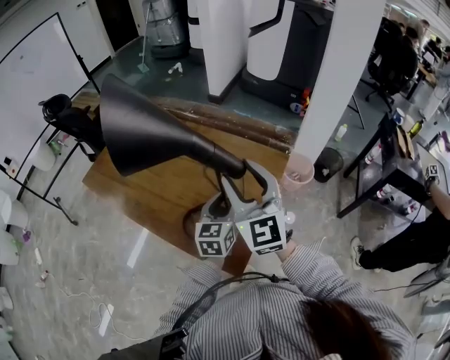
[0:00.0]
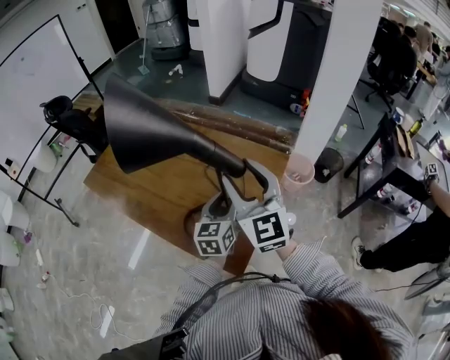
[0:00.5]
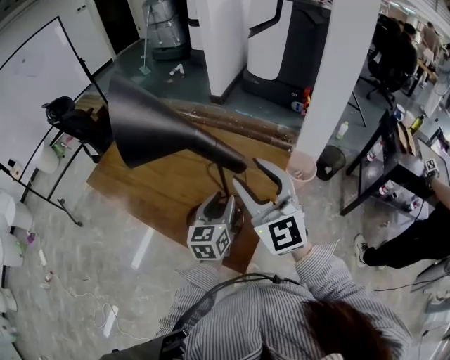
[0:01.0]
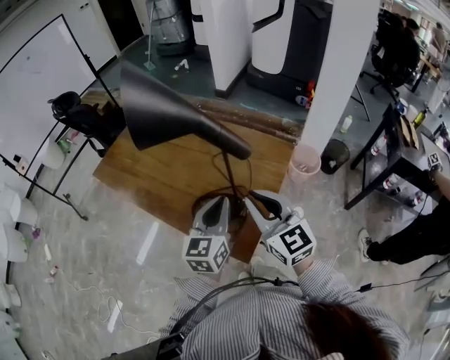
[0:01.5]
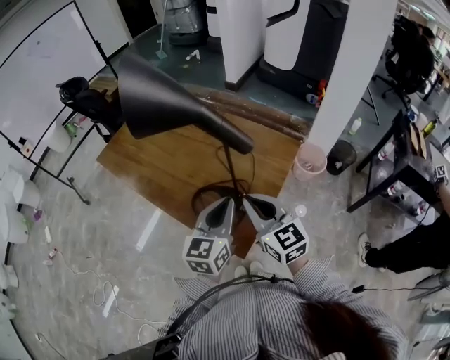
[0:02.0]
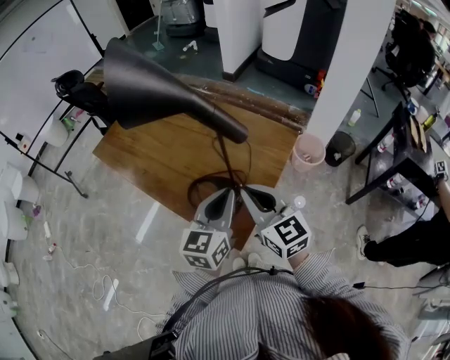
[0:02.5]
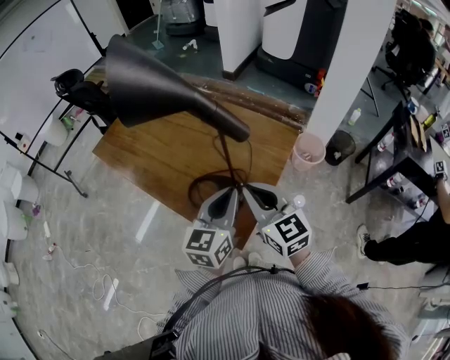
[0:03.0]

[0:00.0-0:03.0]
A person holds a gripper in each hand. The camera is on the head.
0.0 to 1.5 s: The right gripper is displaced backward and downward by roughly 10 cm, turns by some 20 degrees, and closes its fingers. The left gripper heads backward and upward, covering some 10 cm, and closes its fingers.
1.5 to 3.0 s: The grippers move only a little.

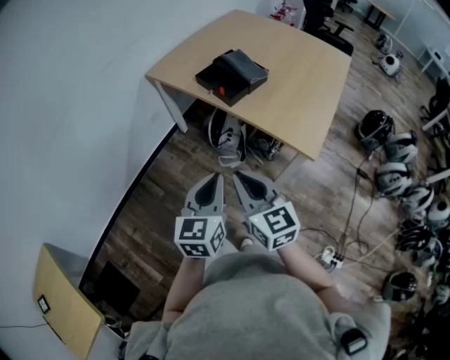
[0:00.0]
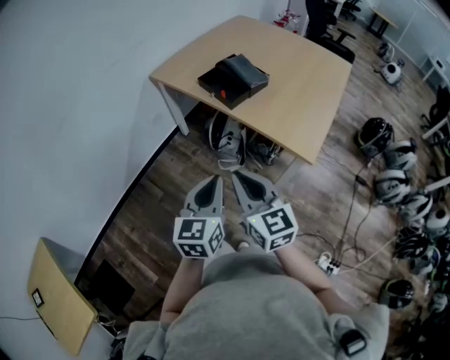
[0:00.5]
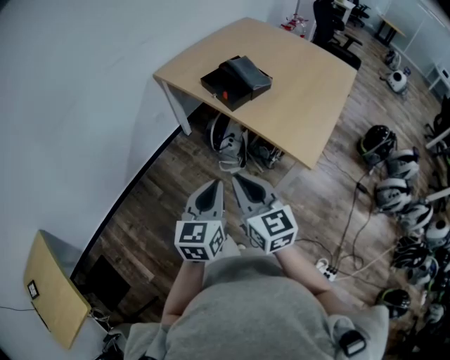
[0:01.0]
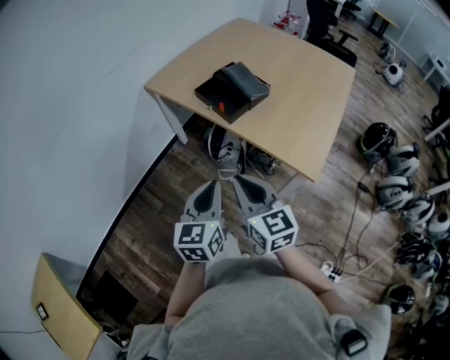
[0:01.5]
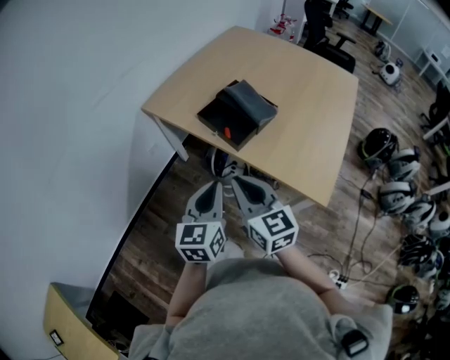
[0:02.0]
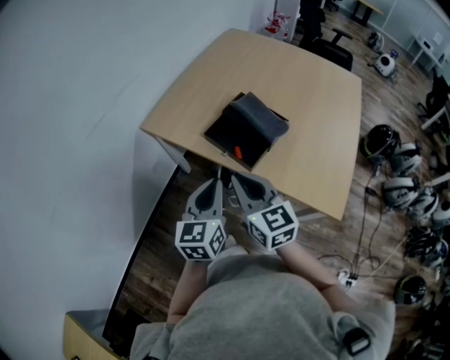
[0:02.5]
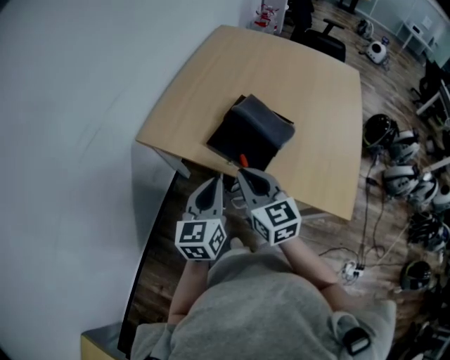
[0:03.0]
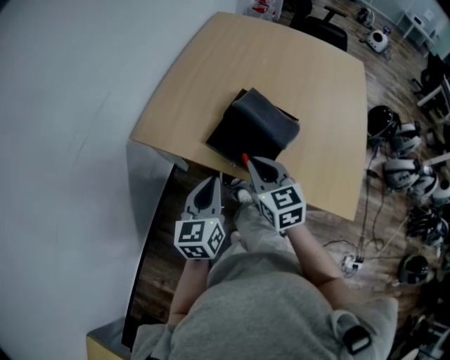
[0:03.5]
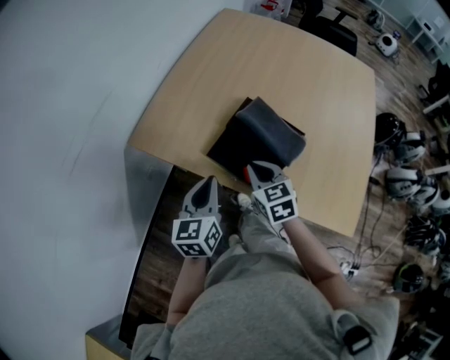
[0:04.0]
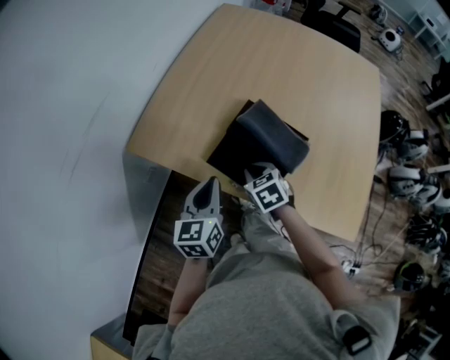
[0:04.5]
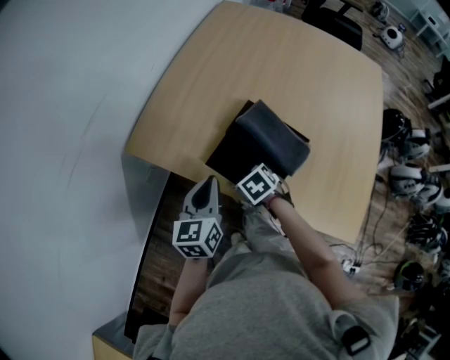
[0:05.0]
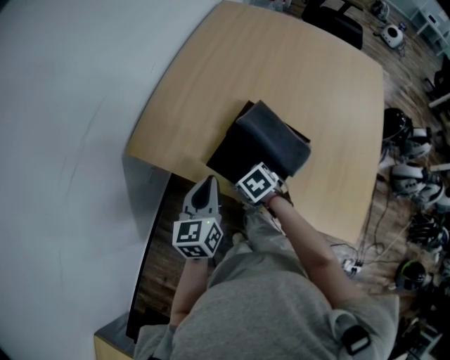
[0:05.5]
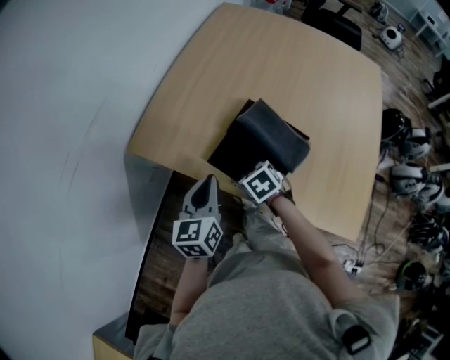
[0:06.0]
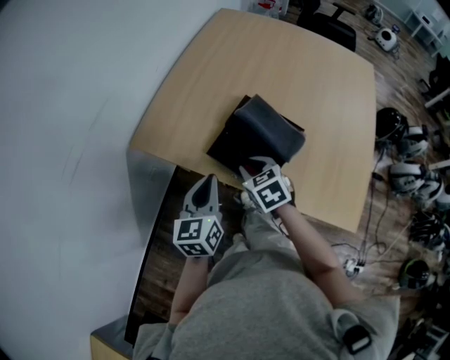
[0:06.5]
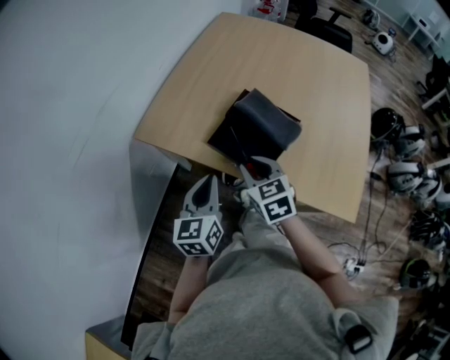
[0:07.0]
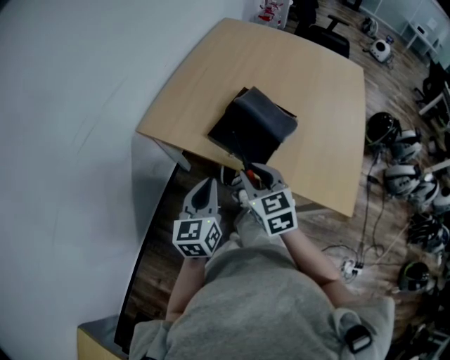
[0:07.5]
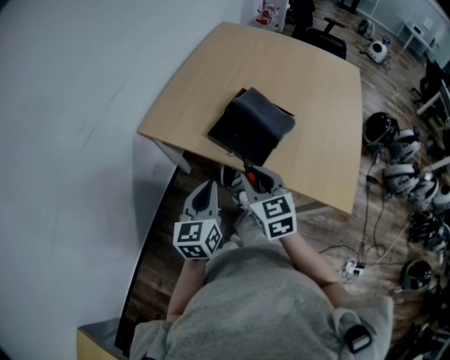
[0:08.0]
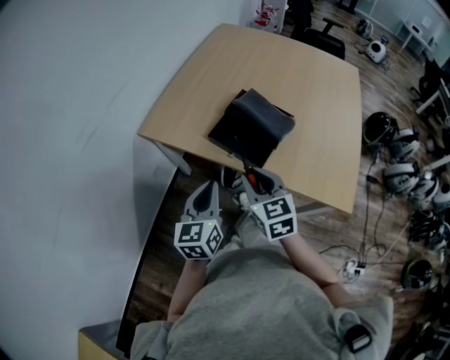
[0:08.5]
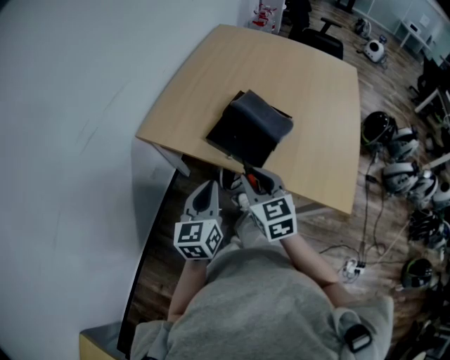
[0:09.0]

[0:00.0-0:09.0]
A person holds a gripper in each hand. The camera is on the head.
0.0 to 2.0 s: The two grippers go some 20 cm forward.
2.0 to 4.5 s: The right gripper is displaced forward and downward by roughly 35 cm, and tips its fingers downward by approximately 40 degrees. Meanwhile the left gripper travels forward by about 30 cm.
4.5 to 7.0 s: The right gripper heads upward, covering about 10 cm, while the left gripper moves roughly 10 cm.
7.0 to 9.0 s: Both grippers move backward, approximately 5 cm.

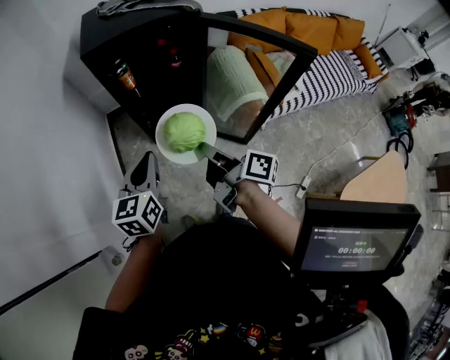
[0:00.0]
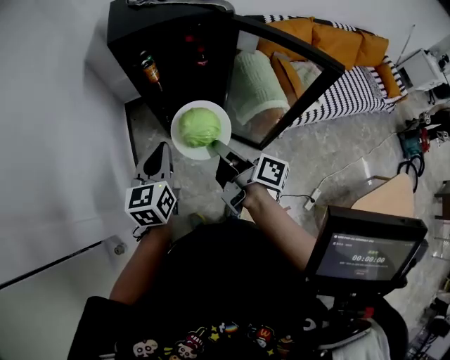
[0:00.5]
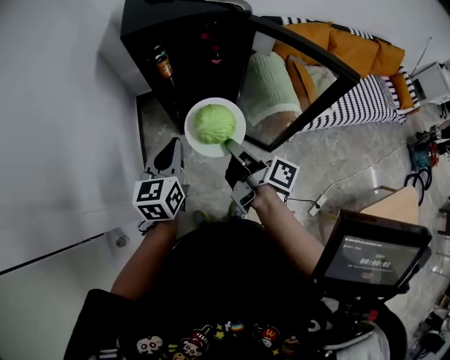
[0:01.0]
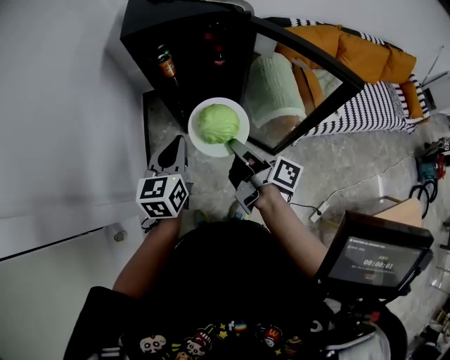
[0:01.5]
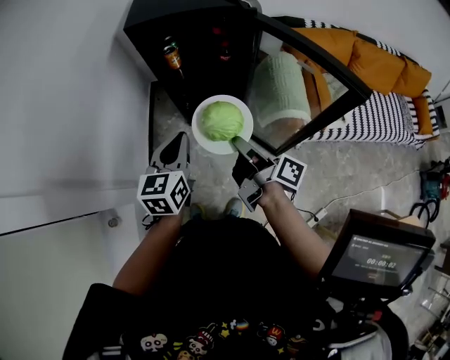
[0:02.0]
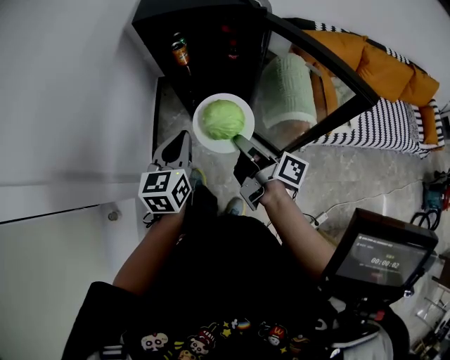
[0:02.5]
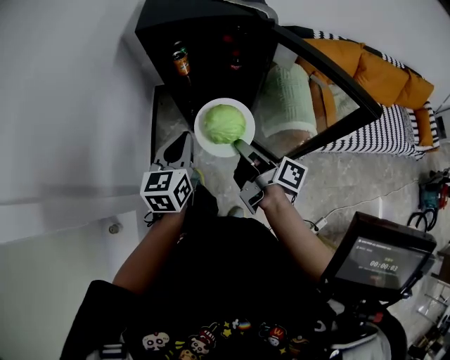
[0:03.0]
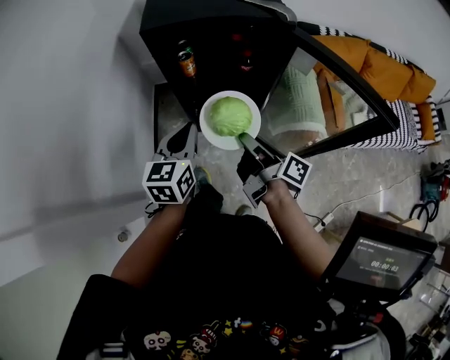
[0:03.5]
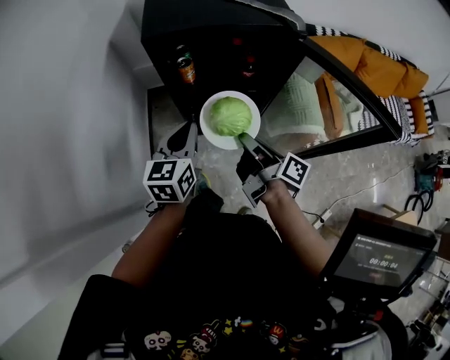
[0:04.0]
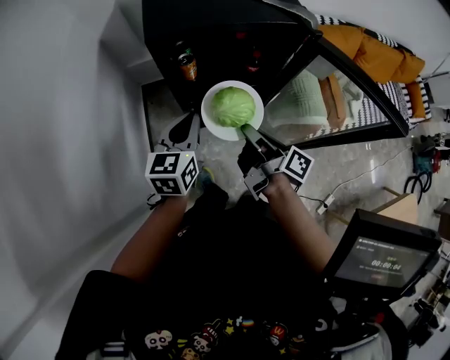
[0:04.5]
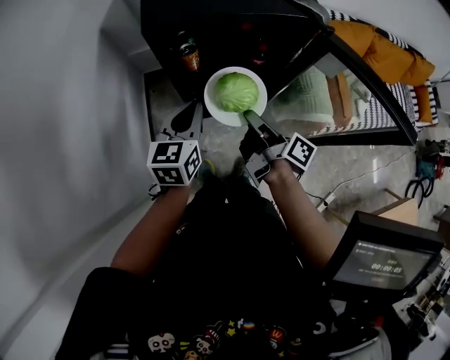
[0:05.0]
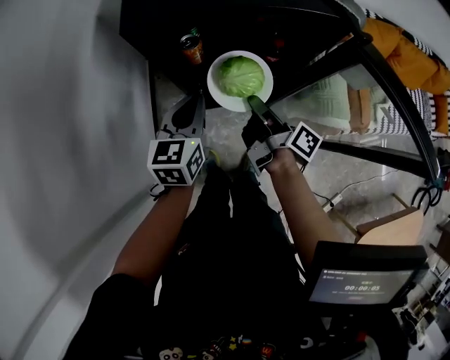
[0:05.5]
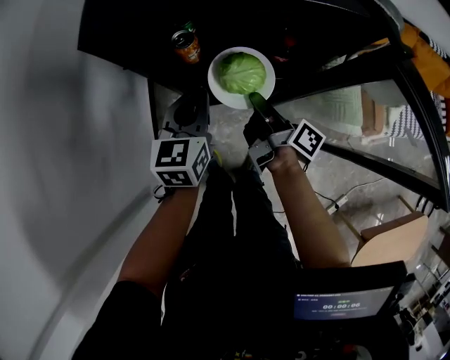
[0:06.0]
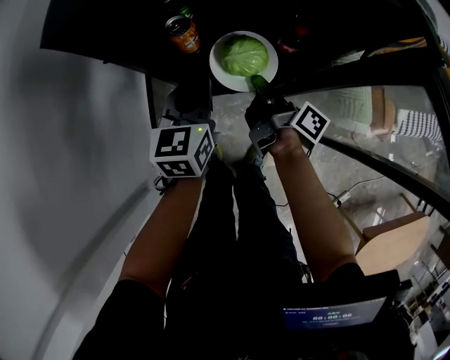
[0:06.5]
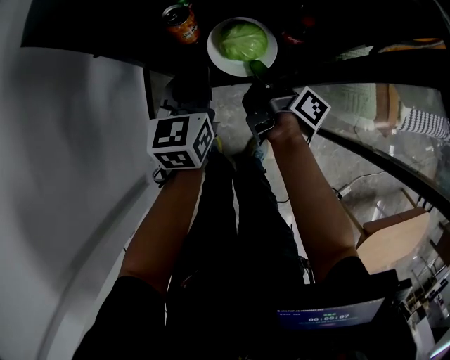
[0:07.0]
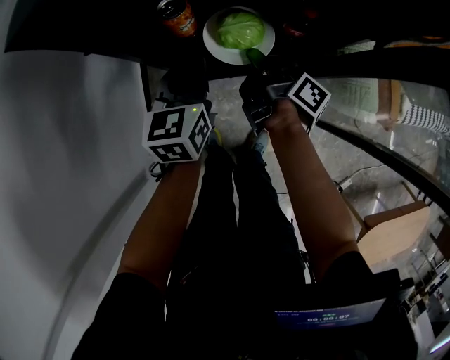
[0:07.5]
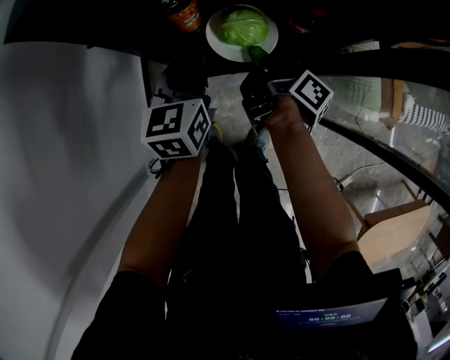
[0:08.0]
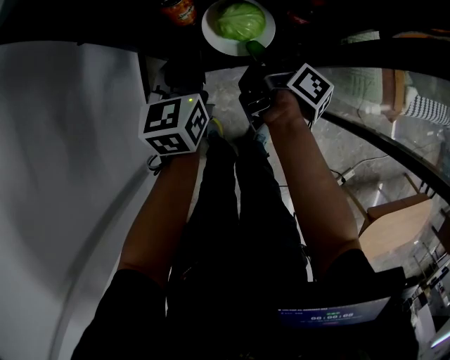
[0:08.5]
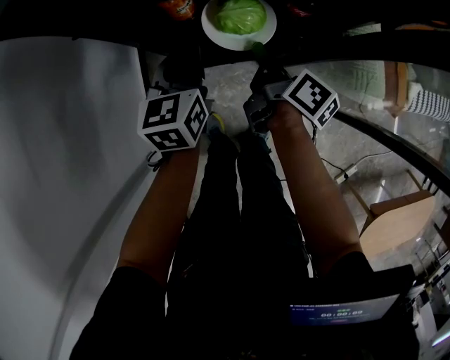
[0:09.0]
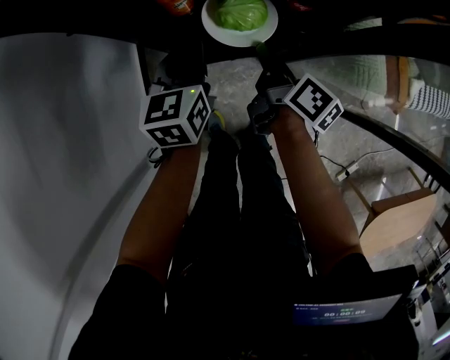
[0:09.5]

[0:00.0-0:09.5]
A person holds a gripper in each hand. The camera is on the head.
0.0 to 2.0 s: The left gripper ends up some 5 cm from where it was.
2.0 to 4.0 s: The left gripper shifts by roughly 15 cm.
4.0 to 5.5 s: The left gripper moves about 15 cm.
5.5 to 7.5 s: The left gripper is displaced downward by roughly 10 cm.

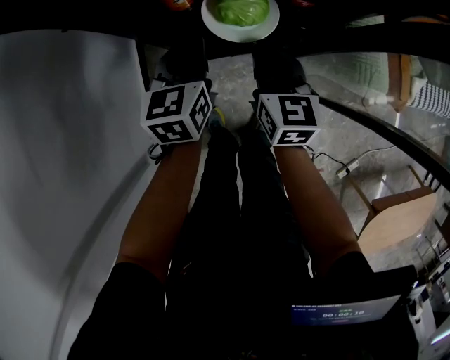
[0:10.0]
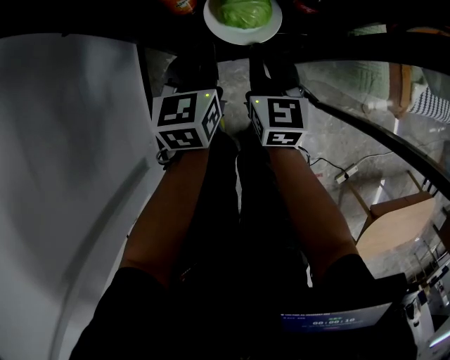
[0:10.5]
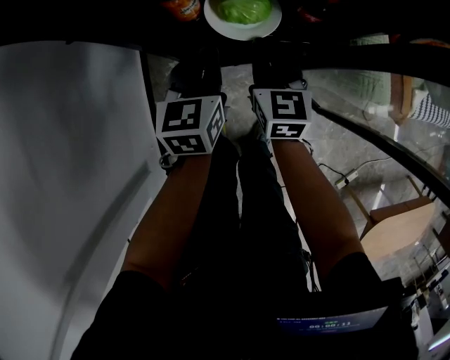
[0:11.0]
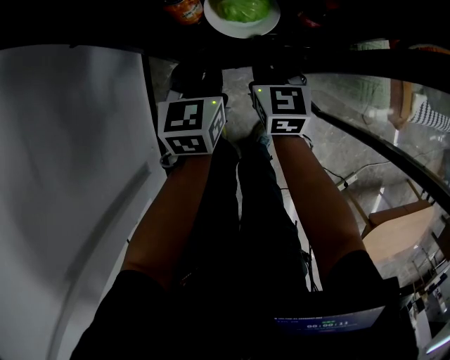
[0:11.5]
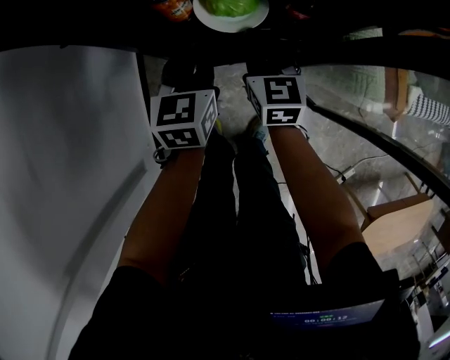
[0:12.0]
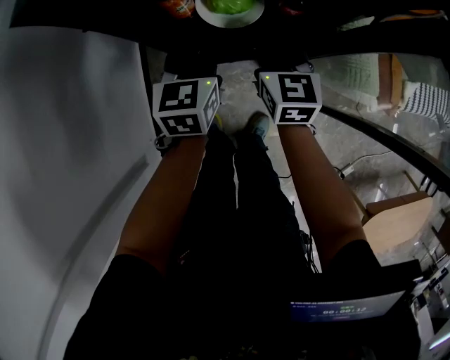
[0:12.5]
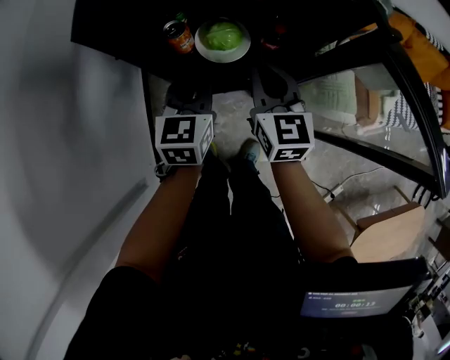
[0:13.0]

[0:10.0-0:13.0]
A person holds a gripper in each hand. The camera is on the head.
11.5 to 13.0 s: The left gripper goes about 10 cm upward.

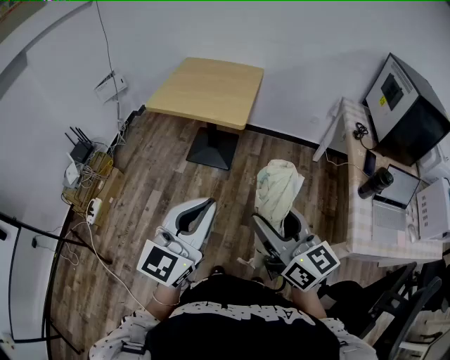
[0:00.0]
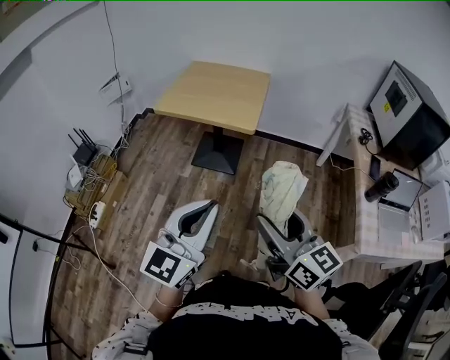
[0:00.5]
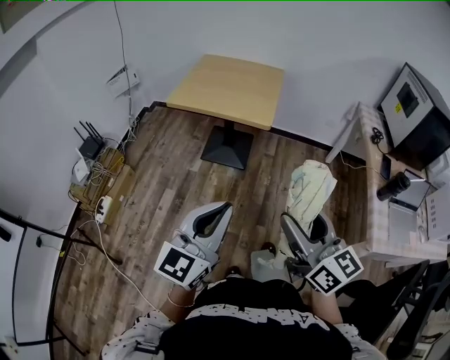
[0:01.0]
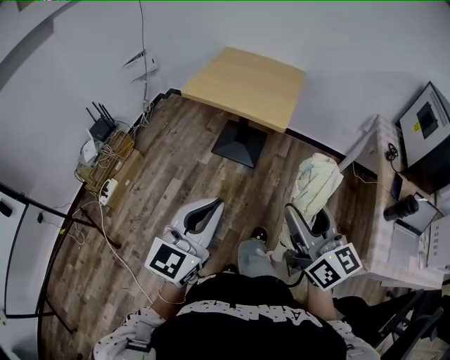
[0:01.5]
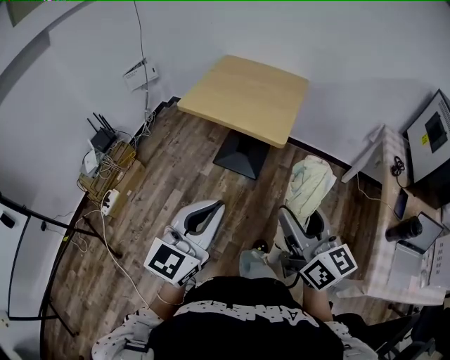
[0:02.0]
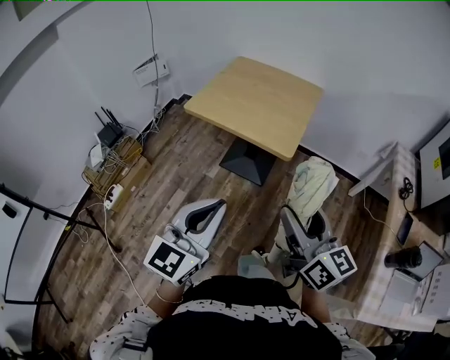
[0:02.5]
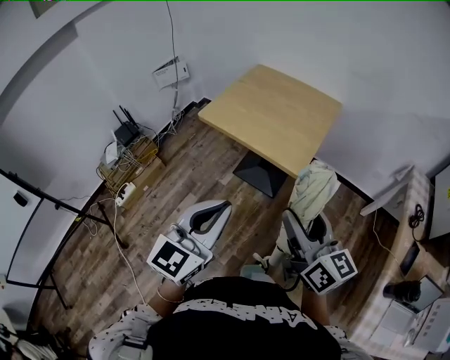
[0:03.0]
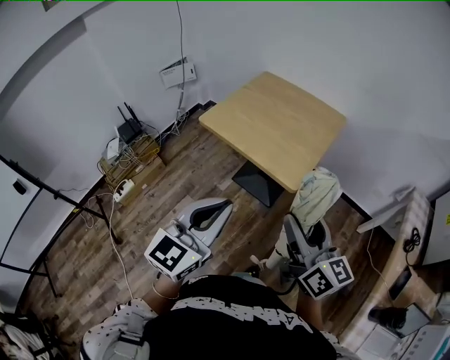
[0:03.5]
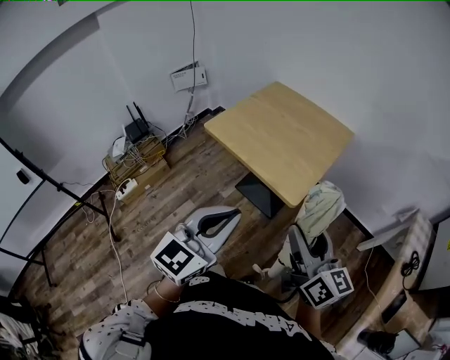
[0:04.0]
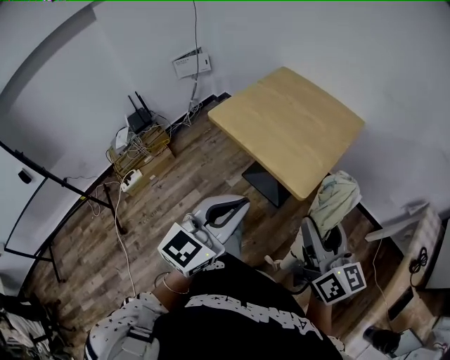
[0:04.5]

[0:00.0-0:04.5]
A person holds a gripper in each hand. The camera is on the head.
0.0 to 2.0 s: The left gripper travels forward and to the left by roughly 15 cm; the right gripper travels forward by about 15 cm.
2.0 to 4.5 s: Both grippers travel together forward and to the right, roughly 20 cm.
